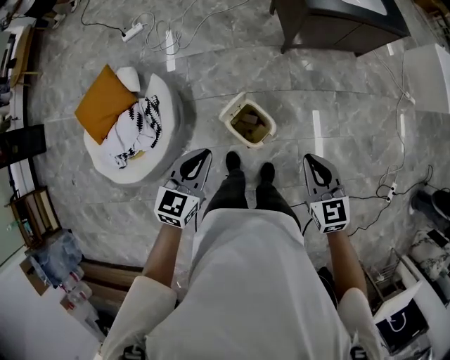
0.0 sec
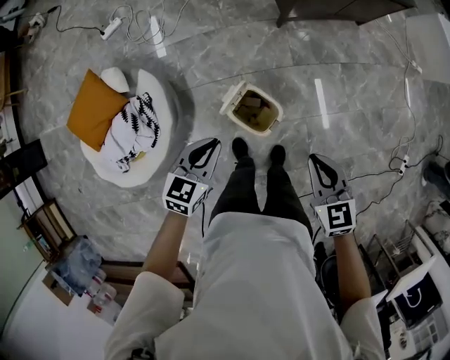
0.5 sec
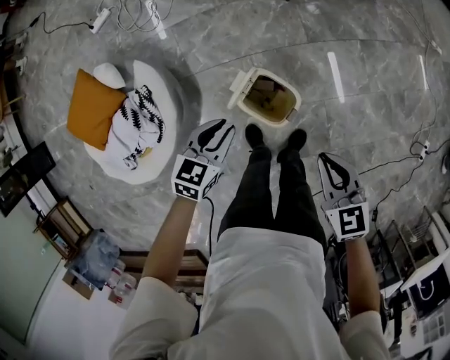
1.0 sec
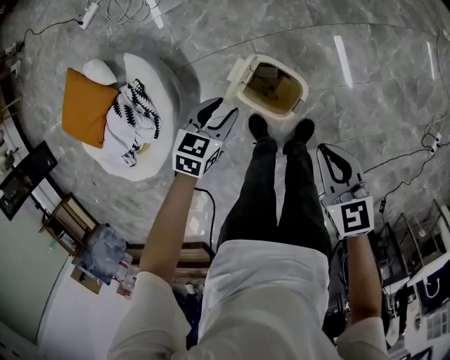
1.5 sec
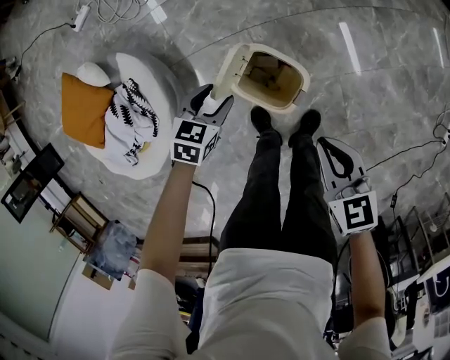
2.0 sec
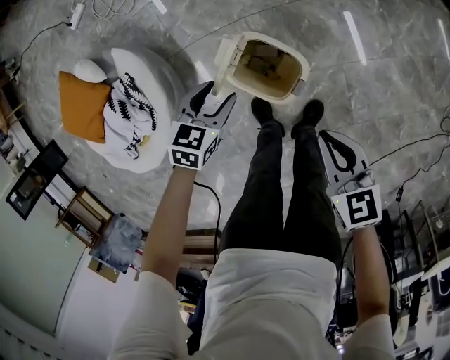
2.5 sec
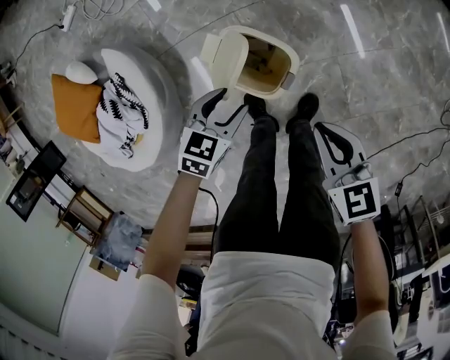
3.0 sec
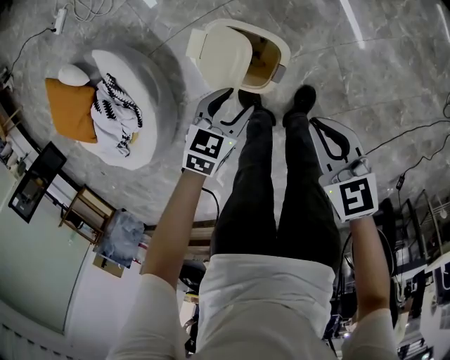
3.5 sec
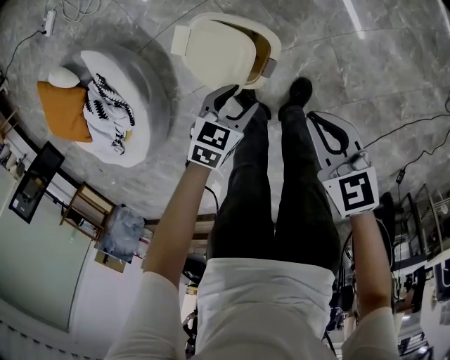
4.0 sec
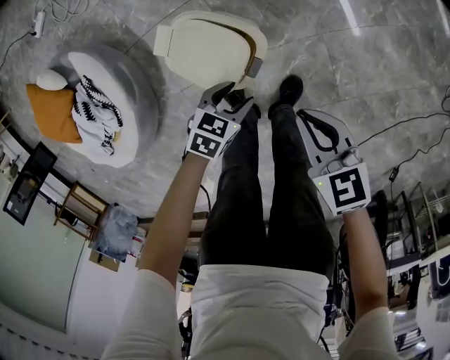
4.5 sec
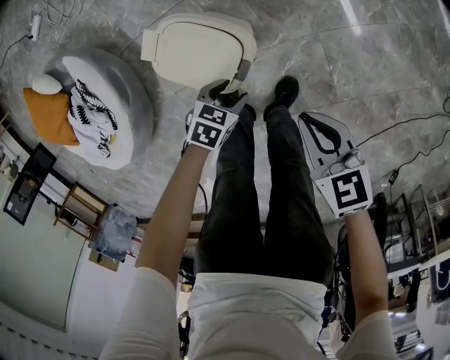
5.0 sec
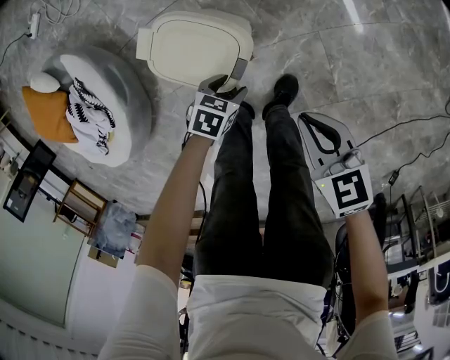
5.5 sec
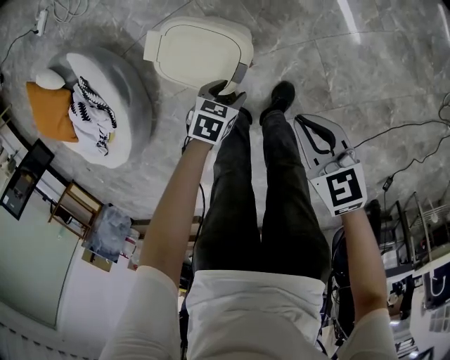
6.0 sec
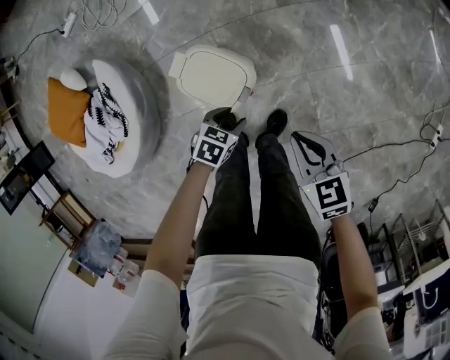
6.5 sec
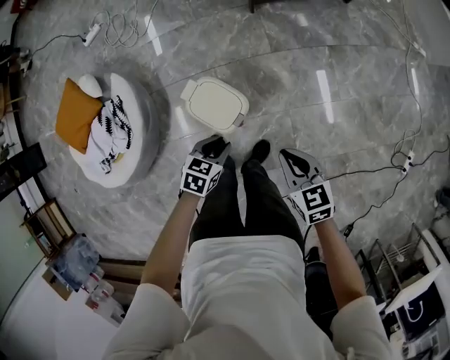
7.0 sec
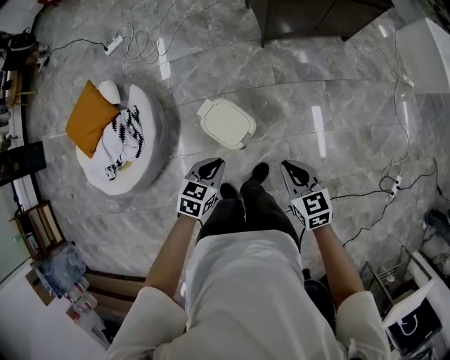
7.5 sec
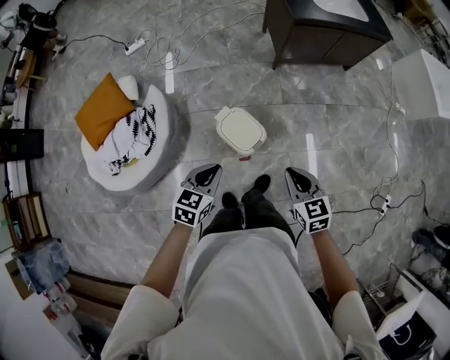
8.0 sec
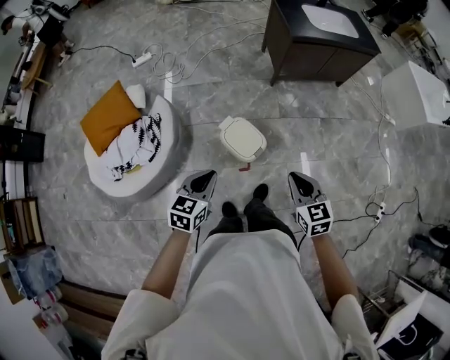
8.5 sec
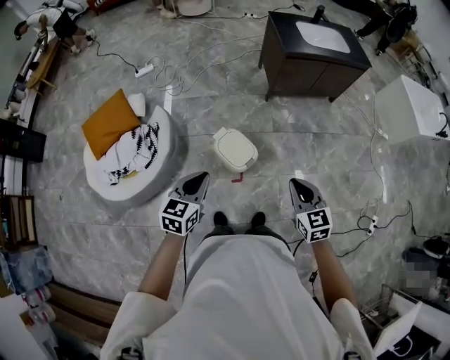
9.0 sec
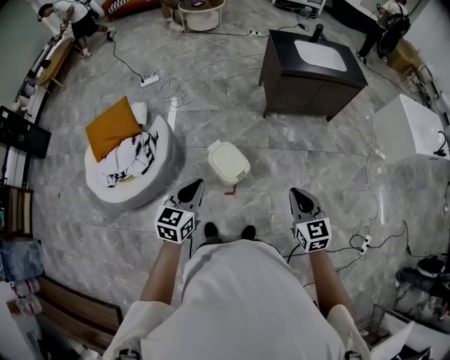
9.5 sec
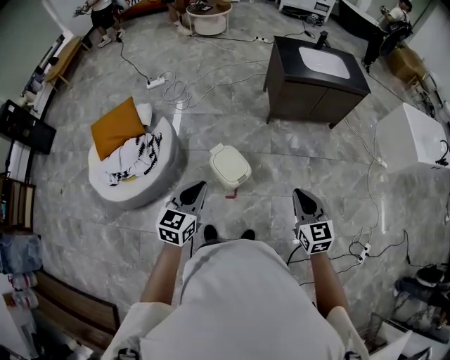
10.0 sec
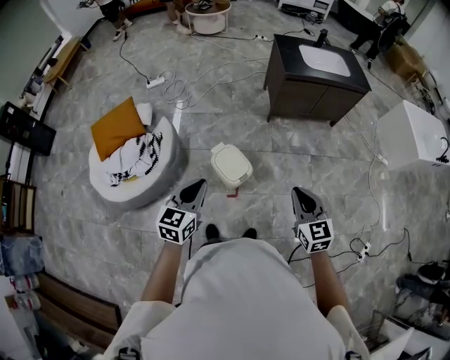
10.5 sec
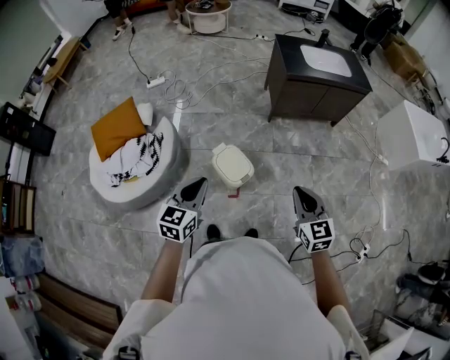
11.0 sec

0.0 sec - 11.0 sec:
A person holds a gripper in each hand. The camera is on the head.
0.0 sec - 2.0 sec: The right gripper travels downward by about 25 cm, and turns by roughly 20 degrees. The left gripper is displaced downward by some 40 cm, changes its angle by approximately 30 degrees, and opens its fingers.
2.0 sec - 3.5 sec: The left gripper moves to the right and backward, some 15 cm. The right gripper shifts some 10 cm downward and to the right.
3.5 sec - 5.5 sec: The right gripper goes some 10 cm downward; the left gripper heads downward, covering roughly 20 cm, and turns by about 20 degrees.
5.5 sec - 7.5 sec: Both grippers move upward, some 35 cm. The left gripper changes its angle by some 30 degrees, and closes.
7.5 sec - 9.0 sec: The left gripper shifts approximately 25 cm upward, to the left and backward, and turns by approximately 20 degrees; the right gripper heads upward and backward, covering roughly 20 cm.
9.0 sec - 11.0 sec: The left gripper moves upward, roughly 5 cm. The right gripper moves upward and to the right, some 5 cm.

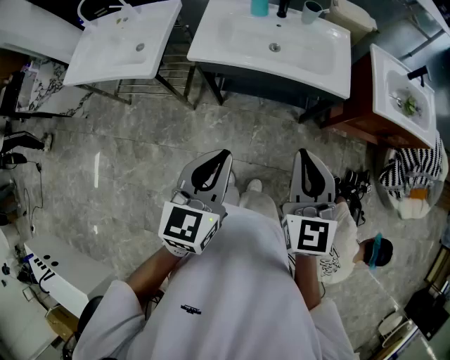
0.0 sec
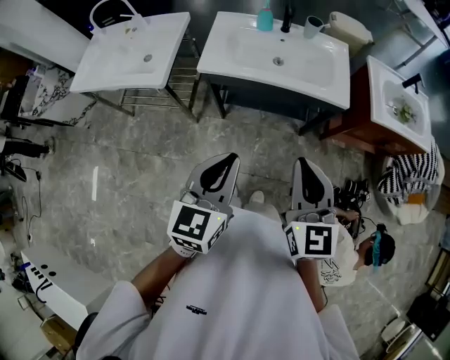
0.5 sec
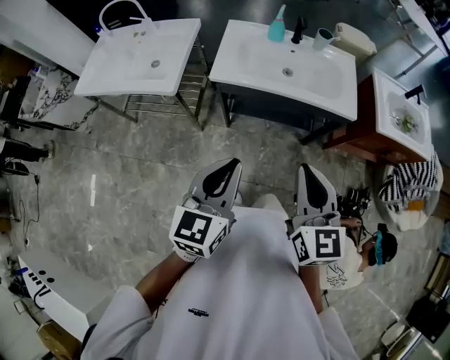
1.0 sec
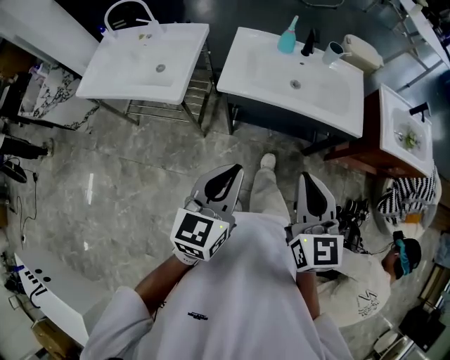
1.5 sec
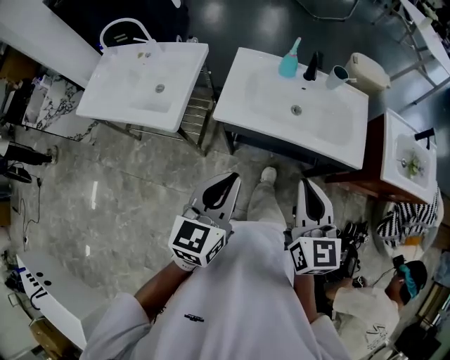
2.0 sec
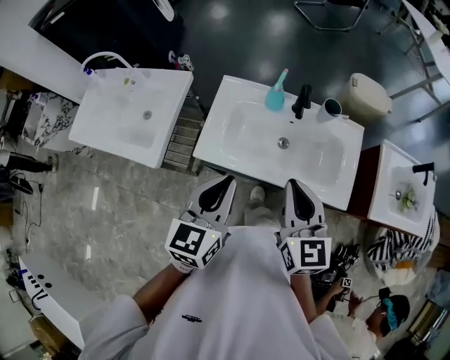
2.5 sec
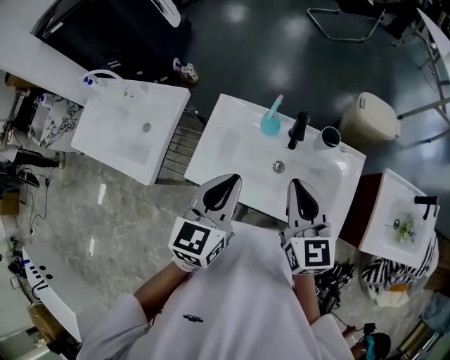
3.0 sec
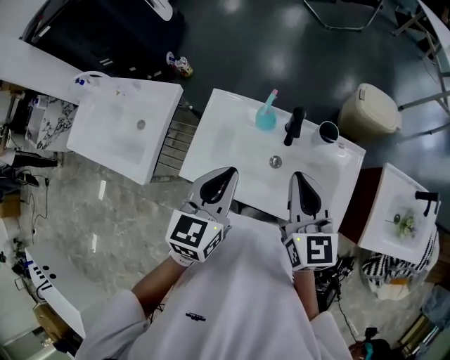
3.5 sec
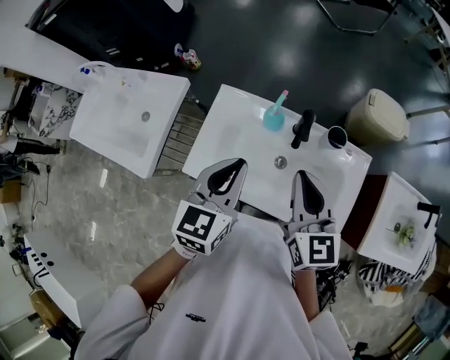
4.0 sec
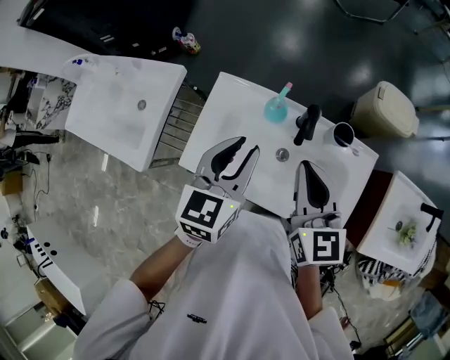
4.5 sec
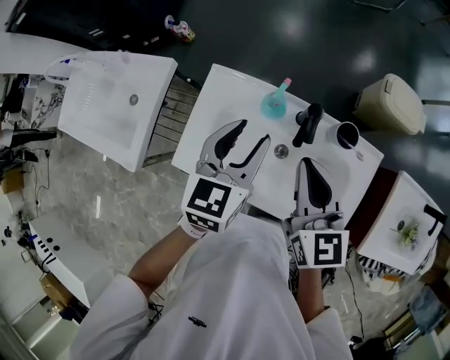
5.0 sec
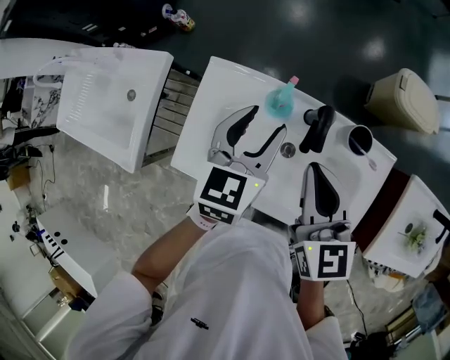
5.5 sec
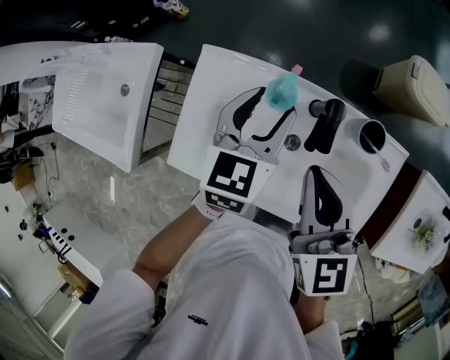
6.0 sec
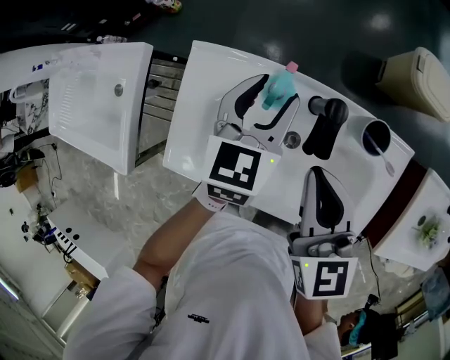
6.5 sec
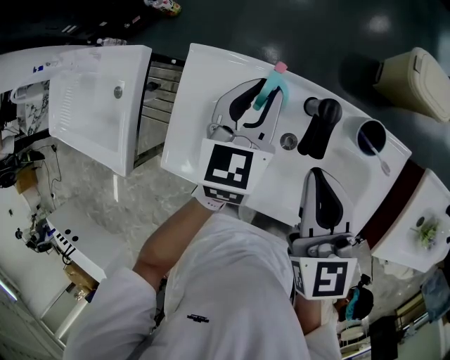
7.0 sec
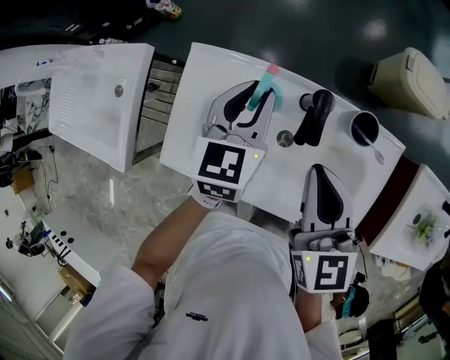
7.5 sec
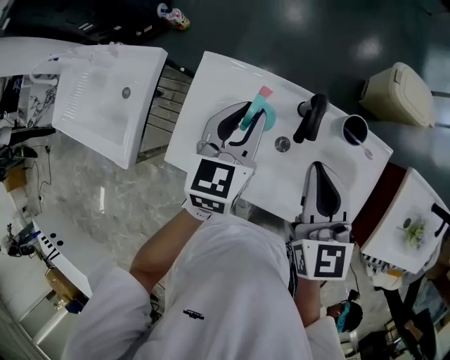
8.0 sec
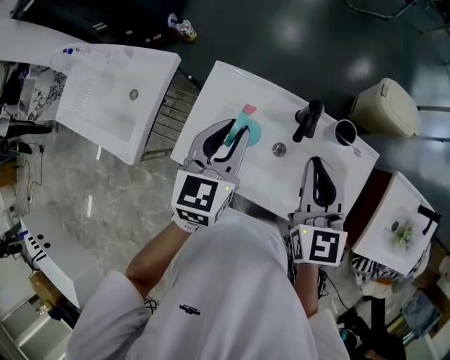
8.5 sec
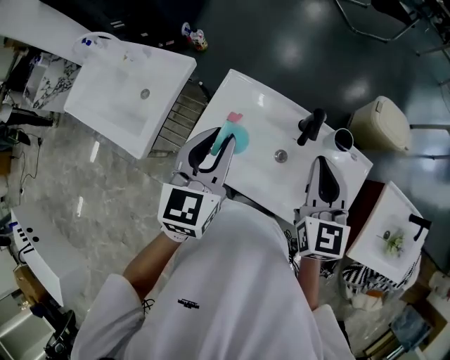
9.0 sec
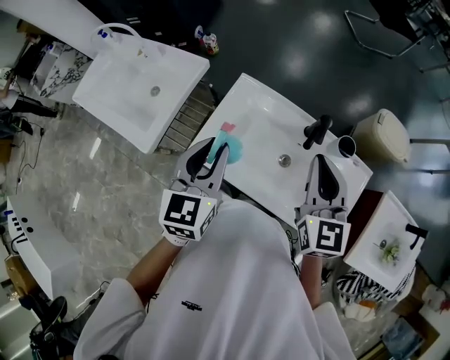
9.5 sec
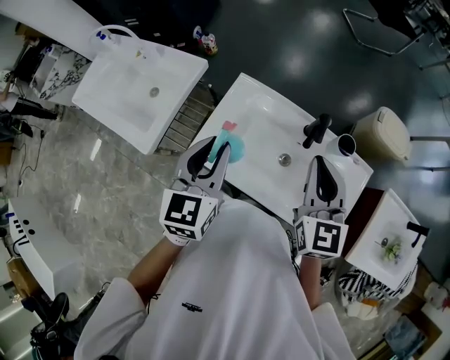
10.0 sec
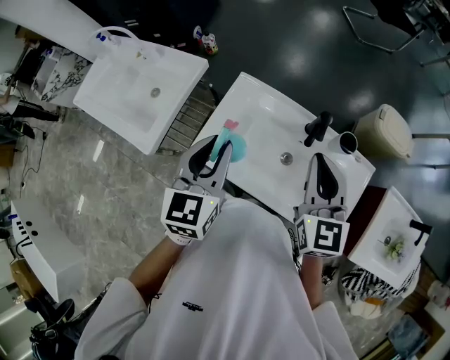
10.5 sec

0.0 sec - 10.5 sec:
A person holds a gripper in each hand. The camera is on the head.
0.0 sec - 2.0 sec: Both grippers travel together forward and to the left, roughly 15 cm.
2.0 sec - 4.0 sec: Both grippers travel together forward, some 35 cm.
4.0 sec - 6.5 sec: The left gripper is displaced forward and downward by about 25 cm, and opens. Meanwhile the right gripper travels downward and forward by roughly 15 cm.
6.5 sec - 8.5 sec: The right gripper moves upward, approximately 10 cm, while the left gripper travels backward, upward and to the left by approximately 20 cm, and closes its fingers.
8.5 sec - 10.5 sec: The left gripper moves to the left, backward and upward, approximately 15 cm, while the right gripper travels upward by roughly 5 cm.

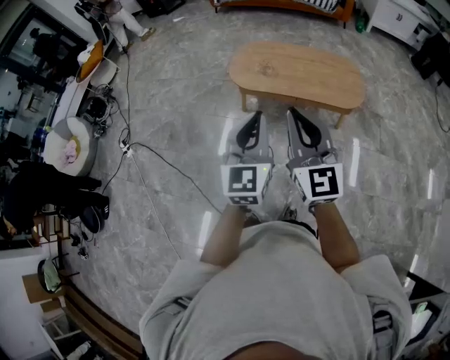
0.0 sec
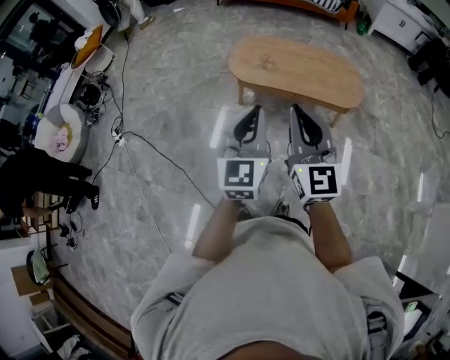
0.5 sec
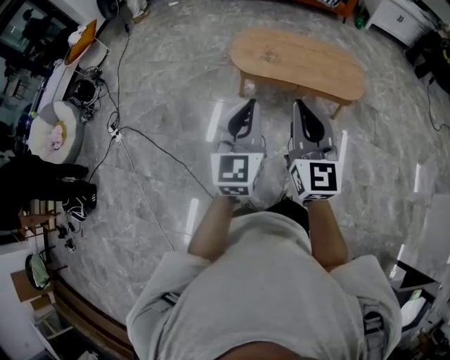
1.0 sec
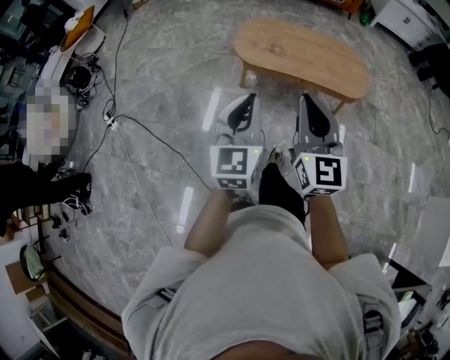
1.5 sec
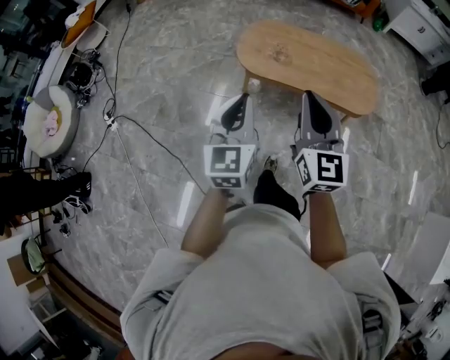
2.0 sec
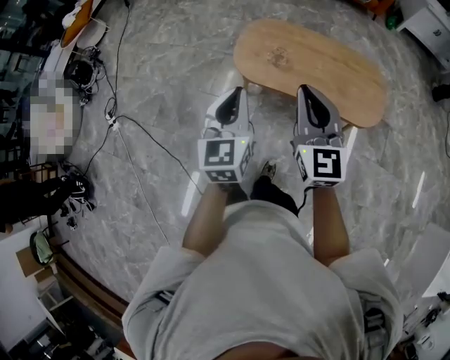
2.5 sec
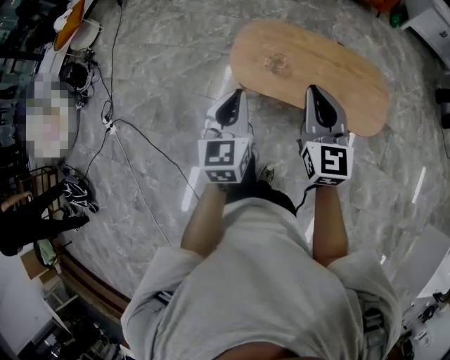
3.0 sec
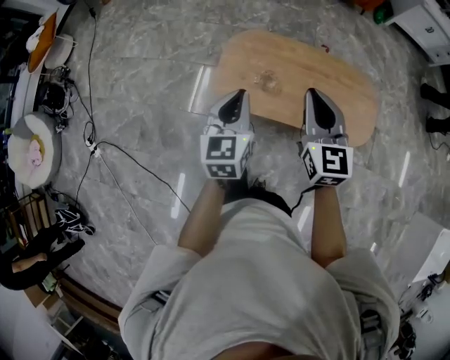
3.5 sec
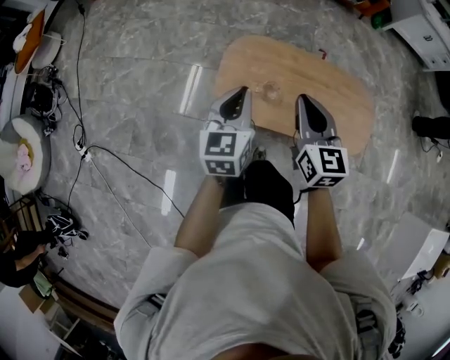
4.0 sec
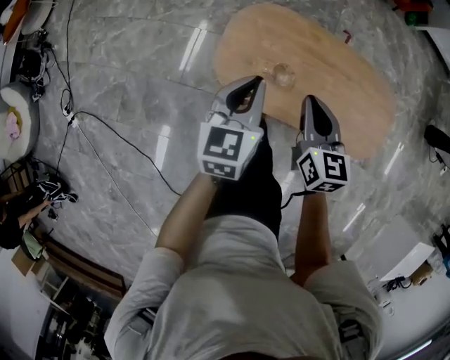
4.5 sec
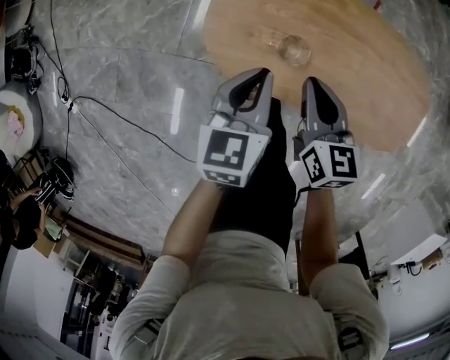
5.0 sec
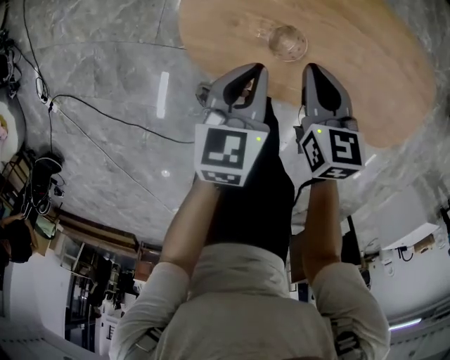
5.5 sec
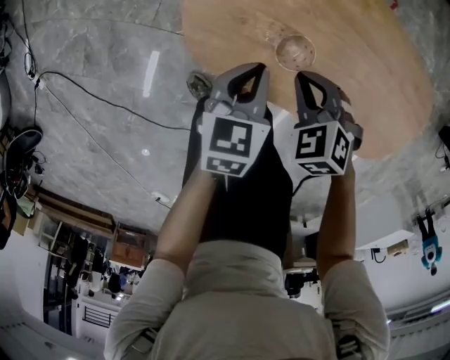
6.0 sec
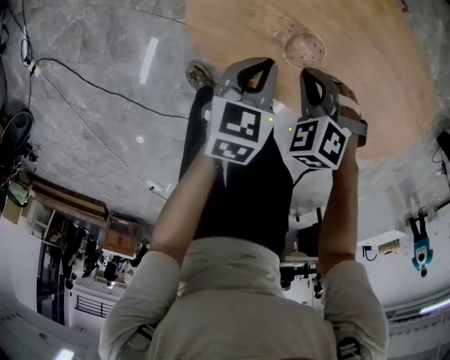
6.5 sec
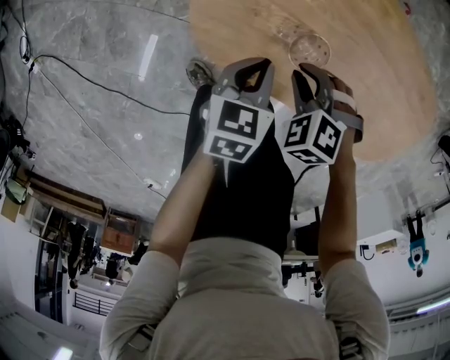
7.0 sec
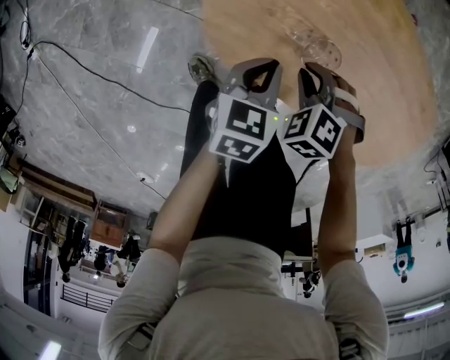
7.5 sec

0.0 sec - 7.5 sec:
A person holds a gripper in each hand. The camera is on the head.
0.0 sec - 2.0 sec: The left gripper shifts about 20 cm forward, to the left and downward, while the right gripper is displaced forward by roughly 15 cm.
2.0 sec - 4.0 sec: Both grippers are carried forward, approximately 40 cm. The right gripper swivels some 20 degrees.
4.0 sec - 5.5 sec: The two grippers go about 35 cm downward. The right gripper swivels some 30 degrees, while the left gripper changes its angle by approximately 20 degrees.
5.5 sec - 7.5 sec: Both grippers move downward, about 10 cm. The right gripper rotates around the line of its fingers by some 70 degrees, counterclockwise from behind.
